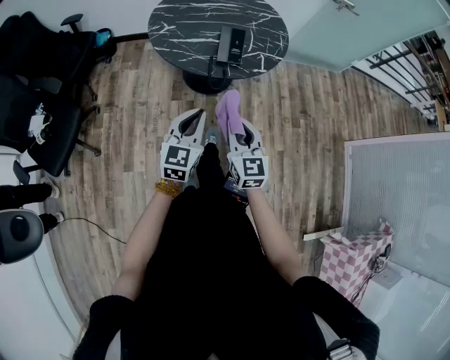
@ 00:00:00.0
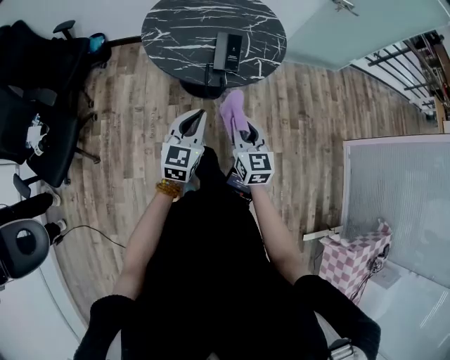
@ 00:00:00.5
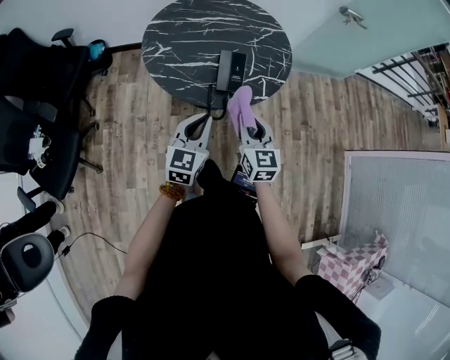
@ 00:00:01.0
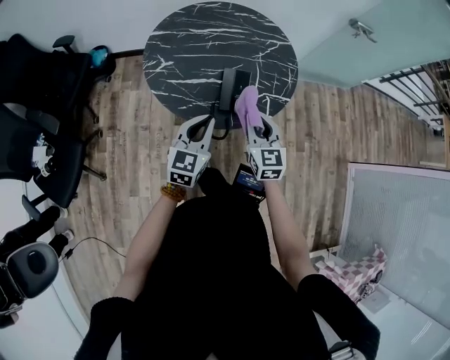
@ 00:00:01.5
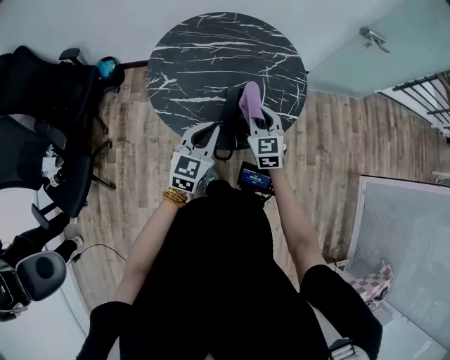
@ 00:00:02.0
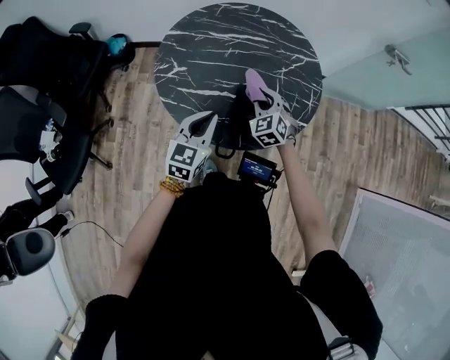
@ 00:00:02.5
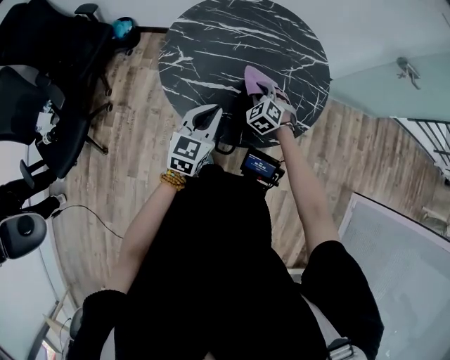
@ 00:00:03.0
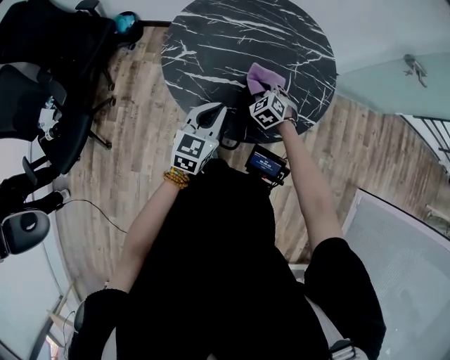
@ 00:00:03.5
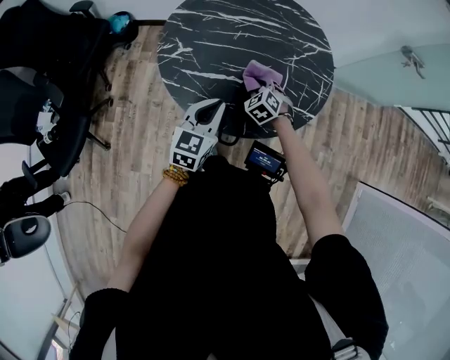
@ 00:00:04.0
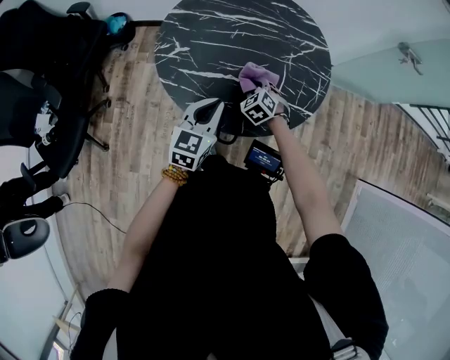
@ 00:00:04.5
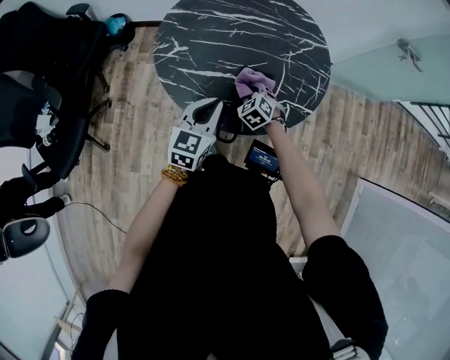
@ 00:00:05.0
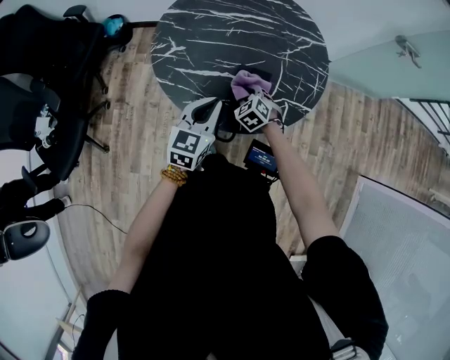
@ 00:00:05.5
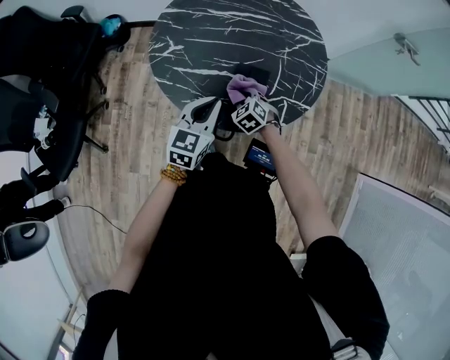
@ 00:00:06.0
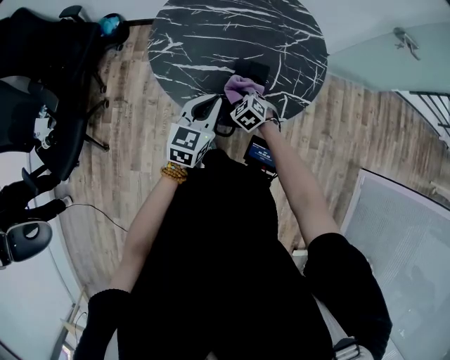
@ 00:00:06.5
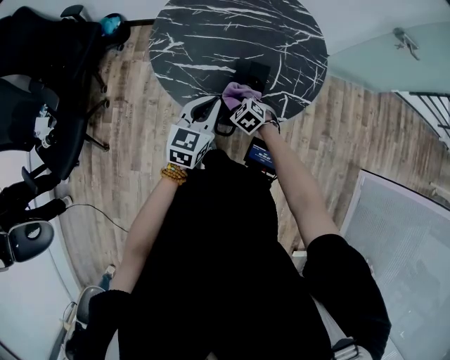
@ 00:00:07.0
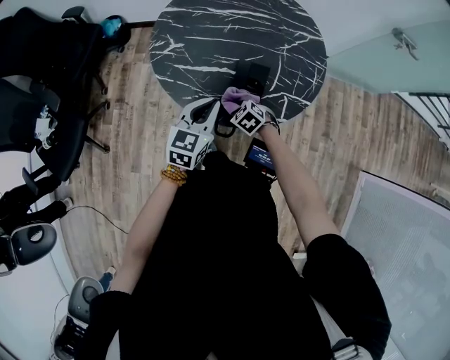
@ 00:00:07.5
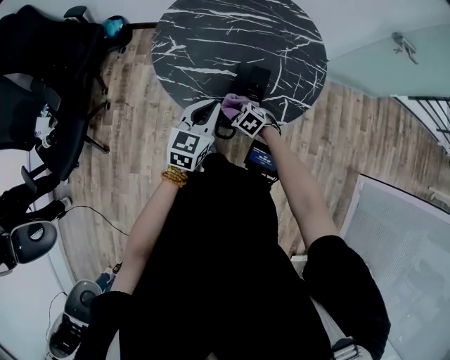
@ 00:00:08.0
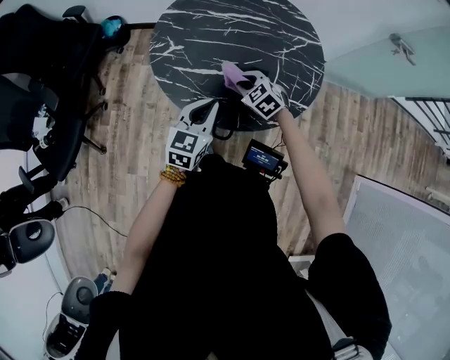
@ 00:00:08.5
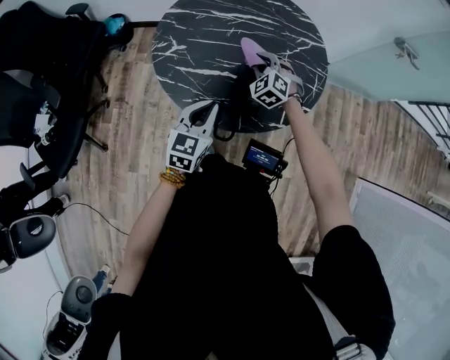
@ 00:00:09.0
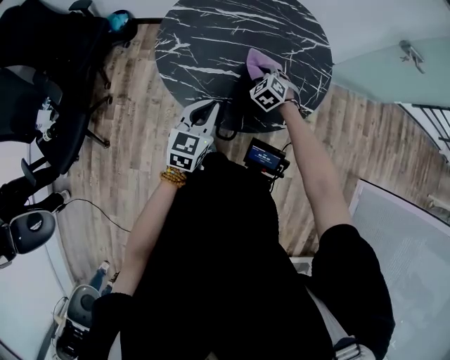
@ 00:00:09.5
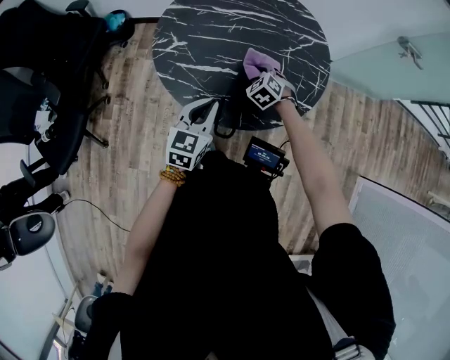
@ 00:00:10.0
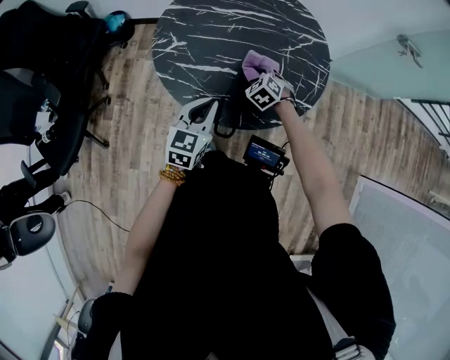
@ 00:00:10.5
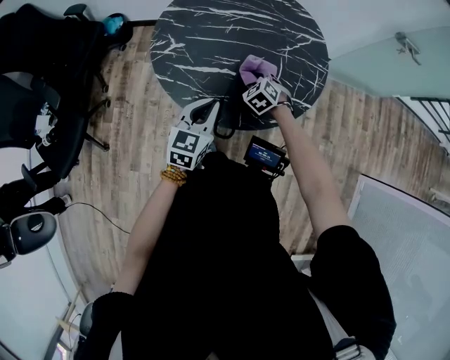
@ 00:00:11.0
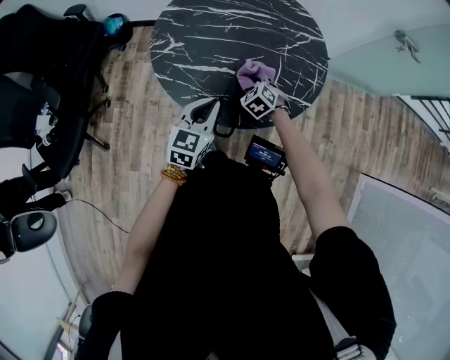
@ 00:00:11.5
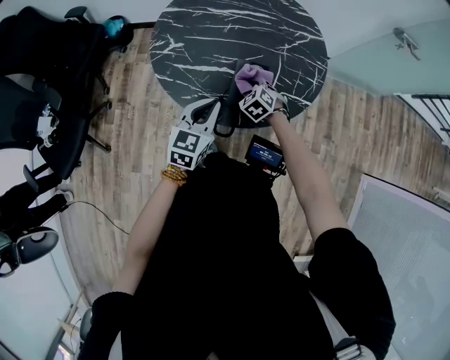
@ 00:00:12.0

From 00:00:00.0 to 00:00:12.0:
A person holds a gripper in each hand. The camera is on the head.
From 00:00:00.0 to 00:00:02.0: Both grippers travel together forward, about 35 cm.
From 00:00:02.0 to 00:00:04.0: The right gripper goes approximately 20 cm downward and forward, and angles its fingers downward, by roughly 30 degrees, while the left gripper changes place by roughly 5 cm.
From 00:00:04.0 to 00:00:06.0: The right gripper travels backward by some 5 cm.
From 00:00:06.0 to 00:00:08.0: The right gripper shifts about 5 cm backward, and swivels approximately 20 degrees.
From 00:00:08.0 to 00:00:10.0: The right gripper heads forward and upward, covering approximately 15 cm, and rotates about 30 degrees.
From 00:00:10.0 to 00:00:12.0: The right gripper travels backward by roughly 5 cm.

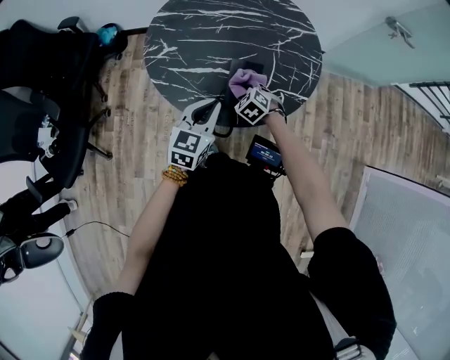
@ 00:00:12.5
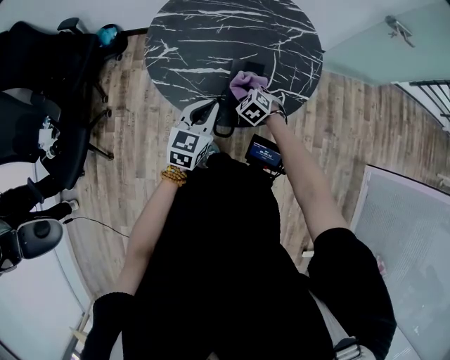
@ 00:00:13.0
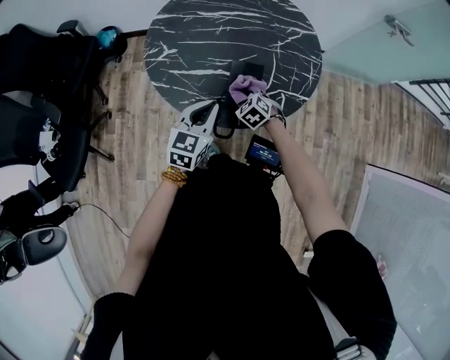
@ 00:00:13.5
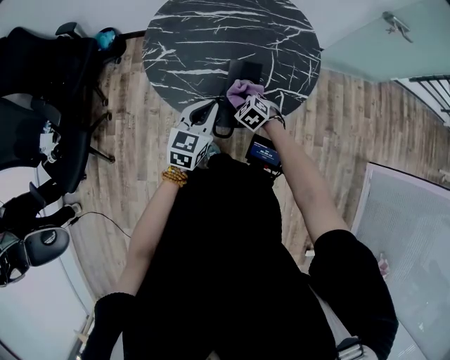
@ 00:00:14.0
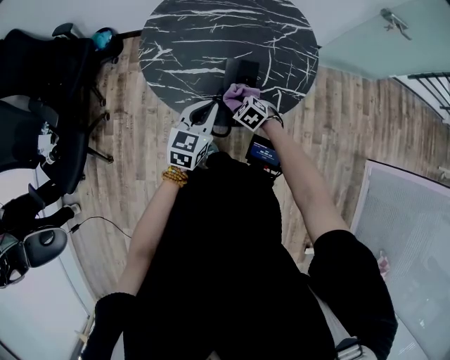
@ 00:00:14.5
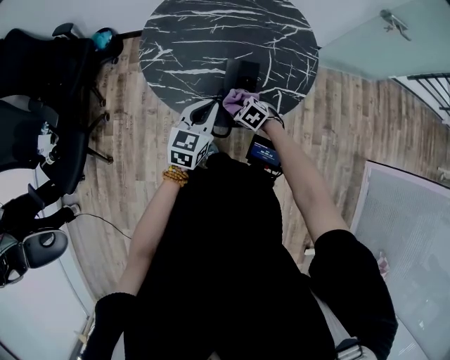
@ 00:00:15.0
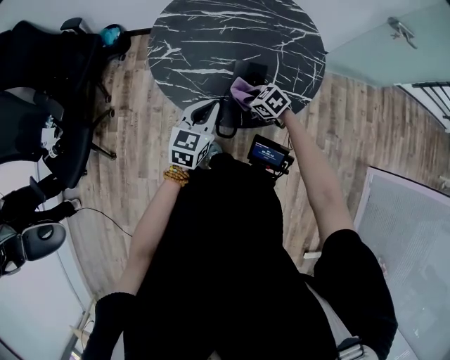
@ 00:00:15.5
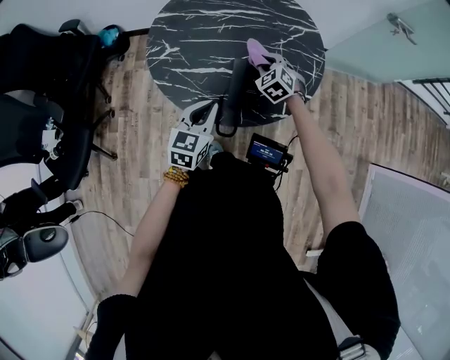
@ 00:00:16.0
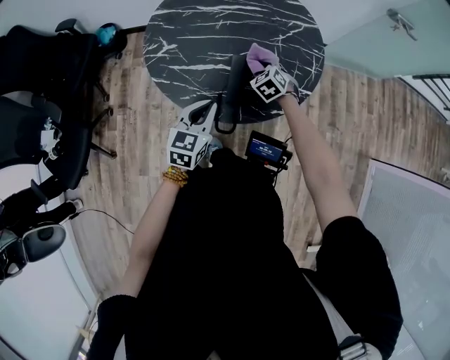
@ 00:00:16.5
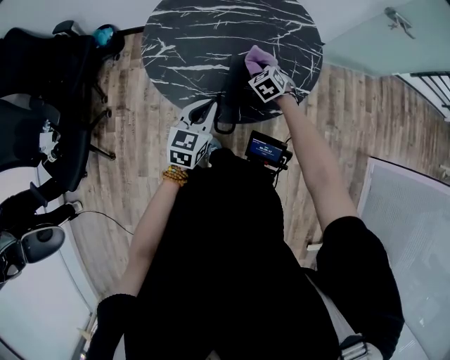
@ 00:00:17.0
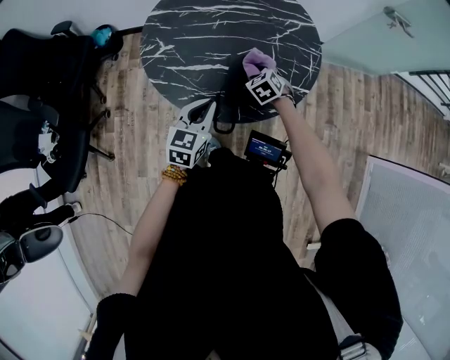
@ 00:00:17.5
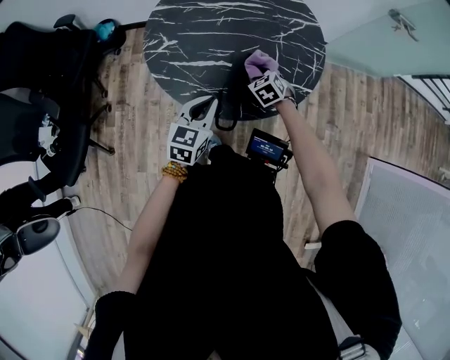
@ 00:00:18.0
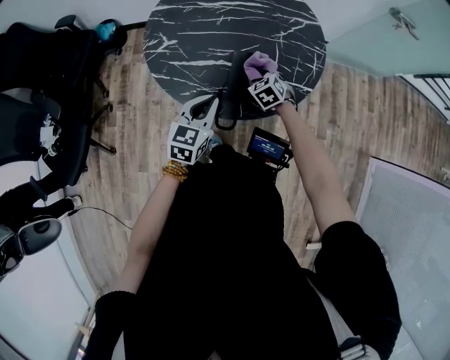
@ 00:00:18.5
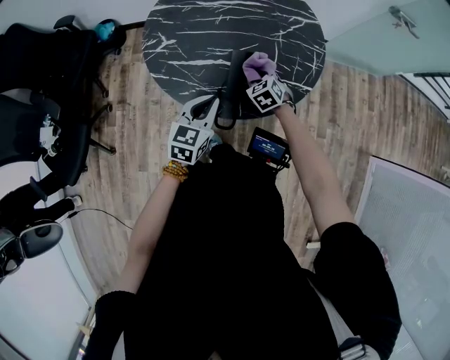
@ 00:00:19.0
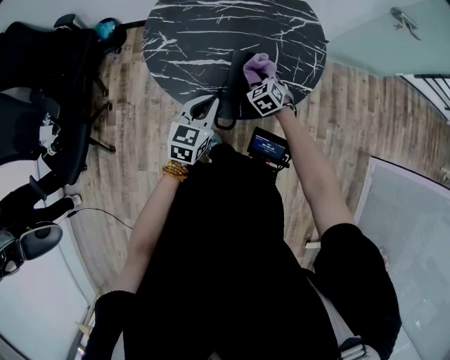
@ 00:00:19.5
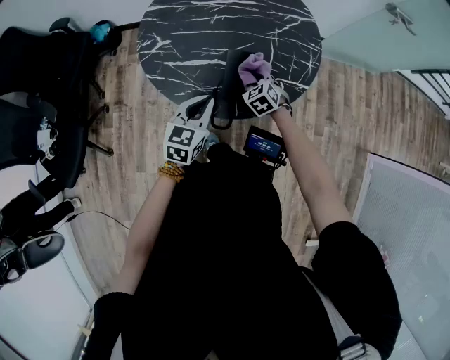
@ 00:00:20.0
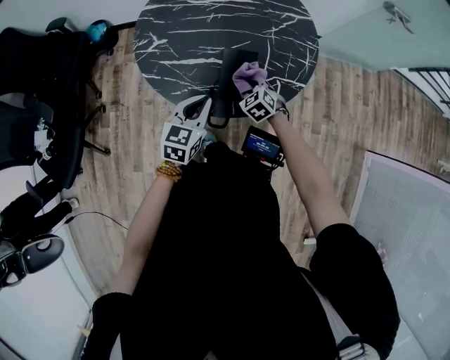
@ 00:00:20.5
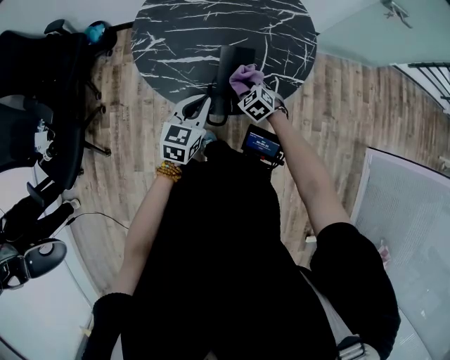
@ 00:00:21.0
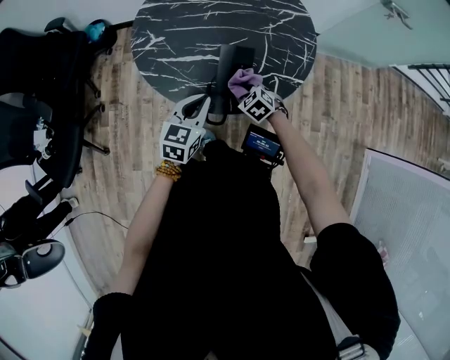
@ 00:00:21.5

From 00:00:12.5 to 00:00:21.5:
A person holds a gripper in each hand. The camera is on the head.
From 00:00:12.5 to 00:00:14.5: The right gripper heads backward, covering some 5 cm.
From 00:00:14.5 to 00:00:17.0: The right gripper changes place by roughly 15 cm, and changes its angle by some 20 degrees.
From 00:00:17.0 to 00:00:19.5: The grippers move only a little.
From 00:00:19.5 to 00:00:21.5: The right gripper goes approximately 5 cm backward.

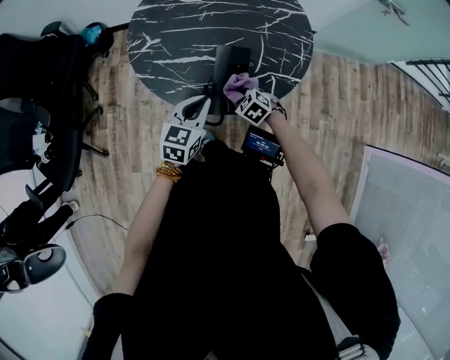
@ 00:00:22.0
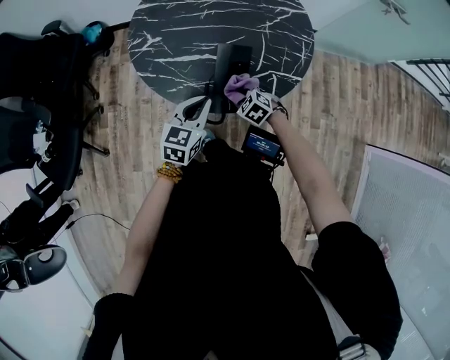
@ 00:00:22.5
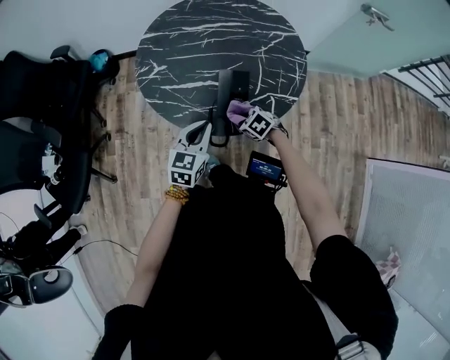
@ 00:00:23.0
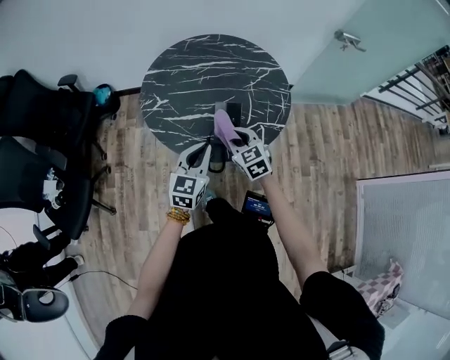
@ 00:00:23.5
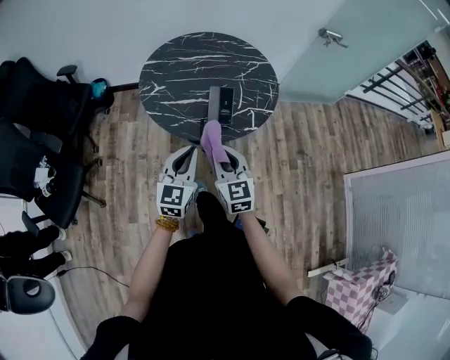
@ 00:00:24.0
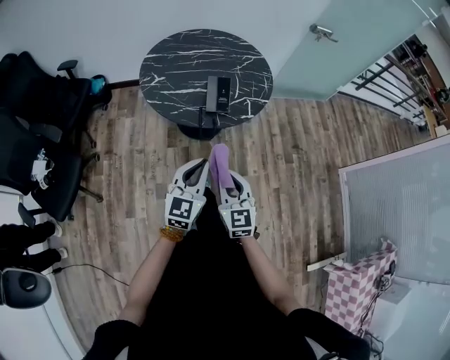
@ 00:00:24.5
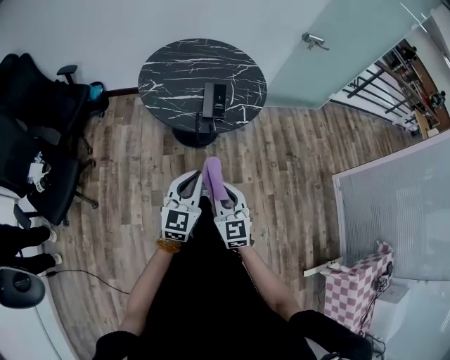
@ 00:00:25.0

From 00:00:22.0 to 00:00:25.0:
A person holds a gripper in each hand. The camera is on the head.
From 00:00:22.0 to 00:00:23.5: The left gripper goes some 10 cm upward. The right gripper is displaced upward by some 20 cm, and angles its fingers upward, by approximately 30 degrees.
From 00:00:23.5 to 00:00:25.0: The grippers both shift backward by roughly 35 cm. The right gripper swivels some 20 degrees.

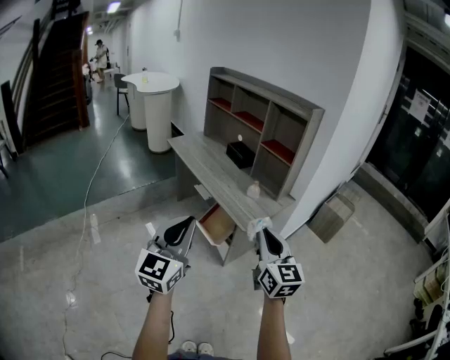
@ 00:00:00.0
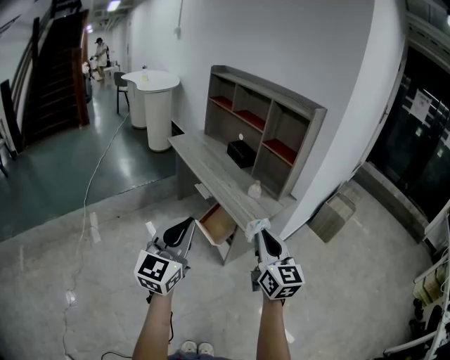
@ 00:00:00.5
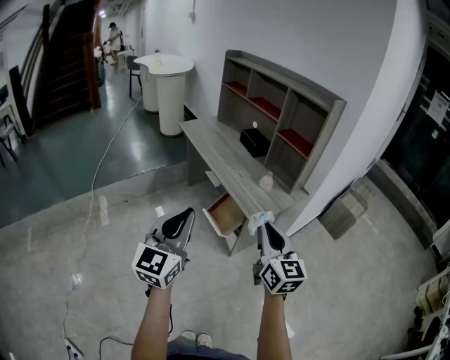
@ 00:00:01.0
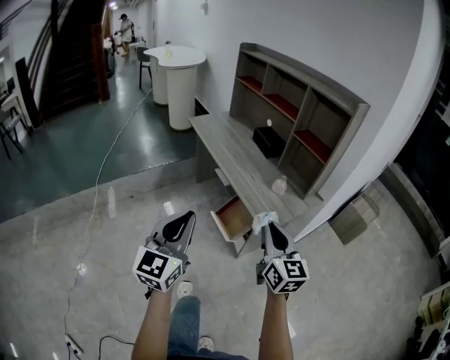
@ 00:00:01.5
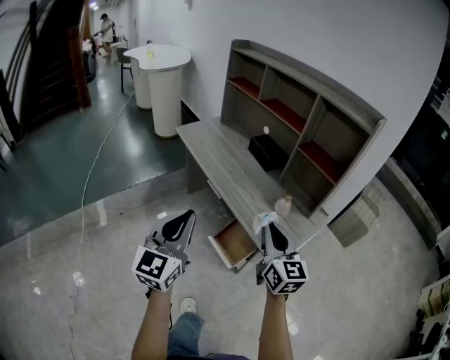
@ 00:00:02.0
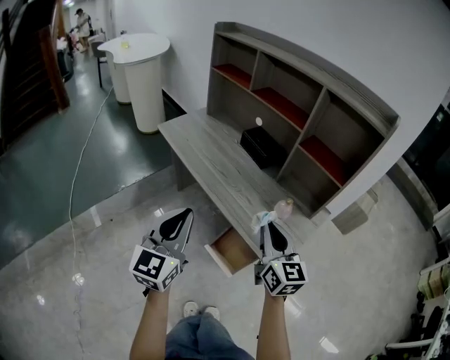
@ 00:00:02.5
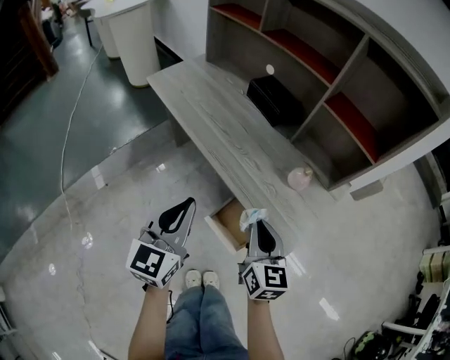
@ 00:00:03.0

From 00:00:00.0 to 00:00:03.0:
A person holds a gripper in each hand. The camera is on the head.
From 00:00:00.0 to 00:00:01.5: Both grippers travel together forward and downward, about 10 cm.
From 00:00:01.5 to 00:00:03.0: The grippers both shift forward and downward by approximately 35 cm. The right gripper swivels approximately 20 degrees.
